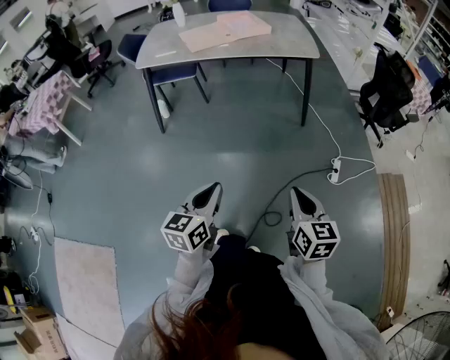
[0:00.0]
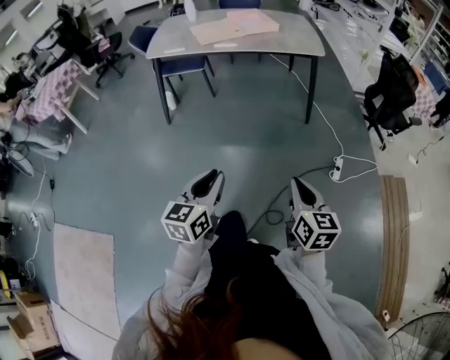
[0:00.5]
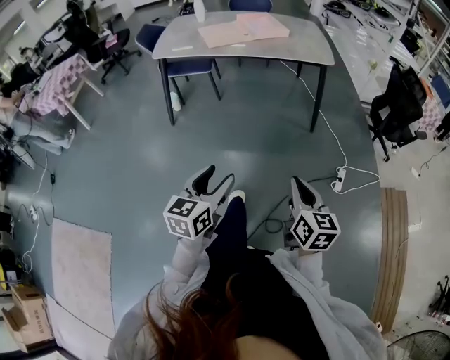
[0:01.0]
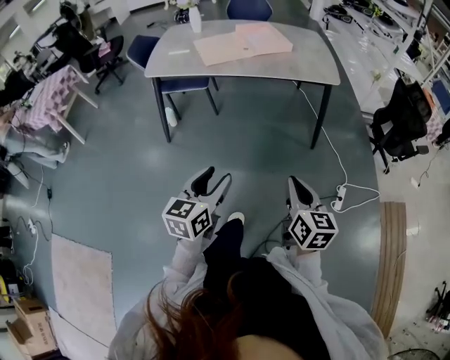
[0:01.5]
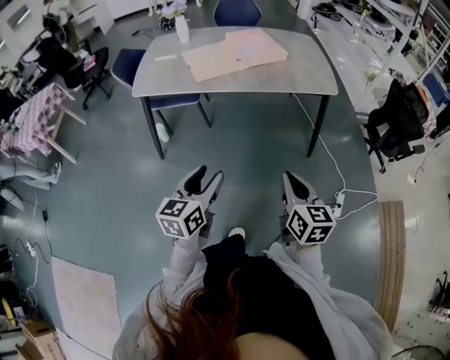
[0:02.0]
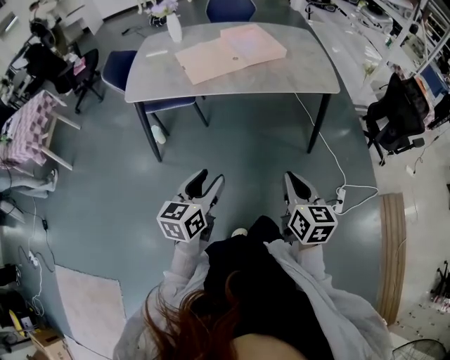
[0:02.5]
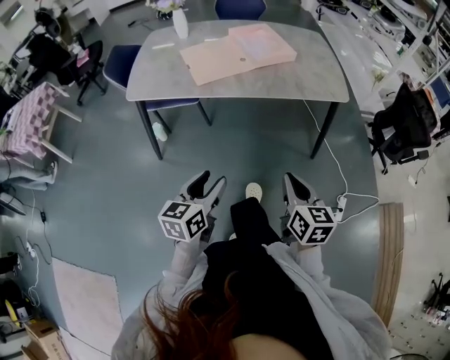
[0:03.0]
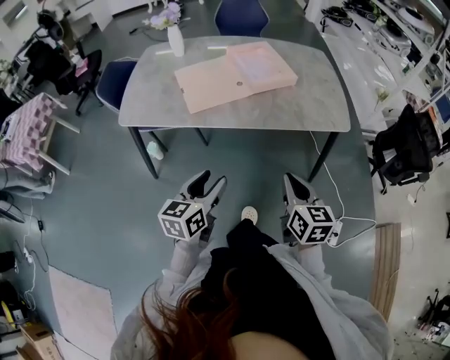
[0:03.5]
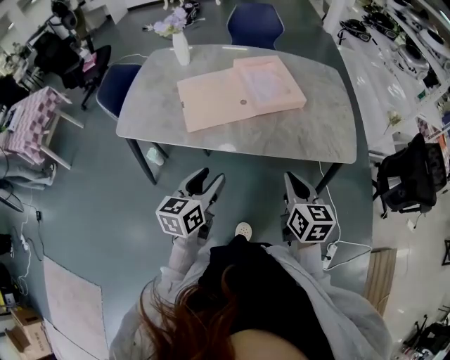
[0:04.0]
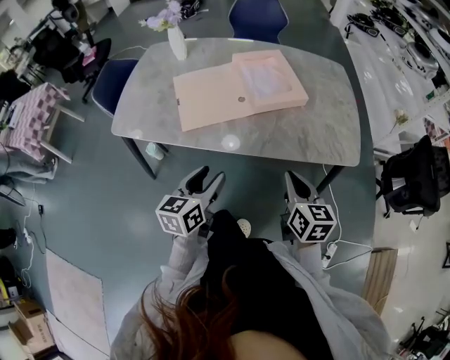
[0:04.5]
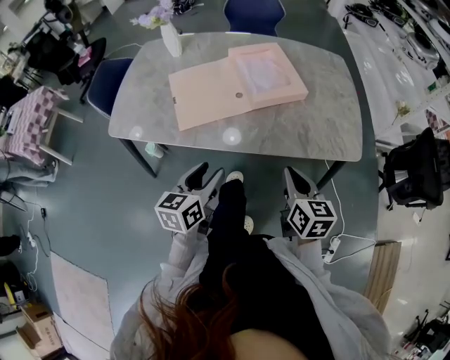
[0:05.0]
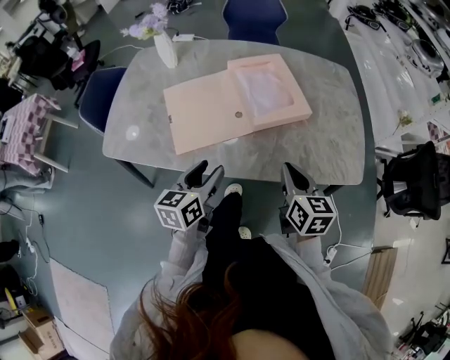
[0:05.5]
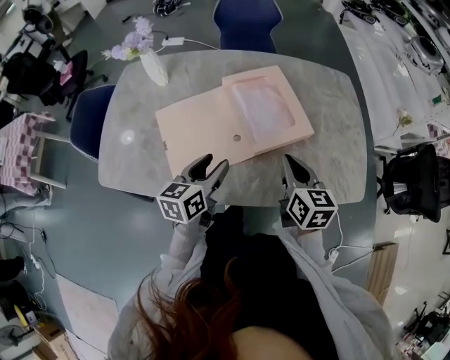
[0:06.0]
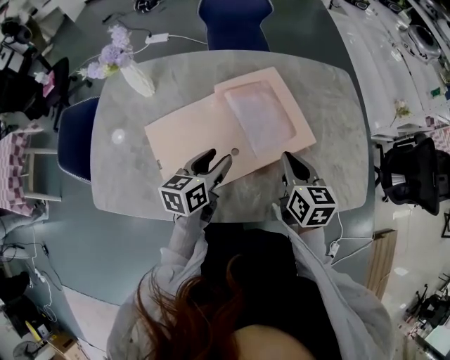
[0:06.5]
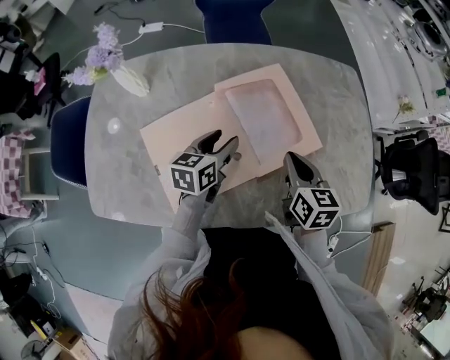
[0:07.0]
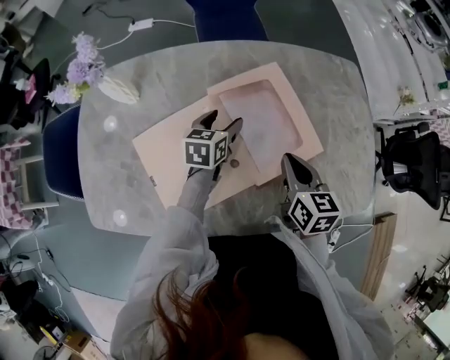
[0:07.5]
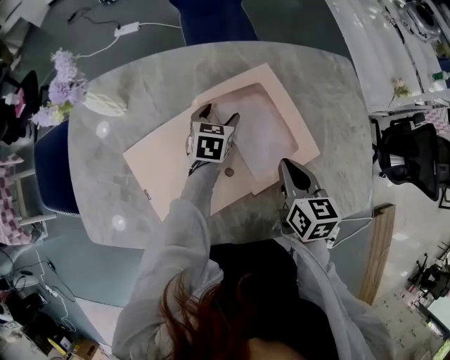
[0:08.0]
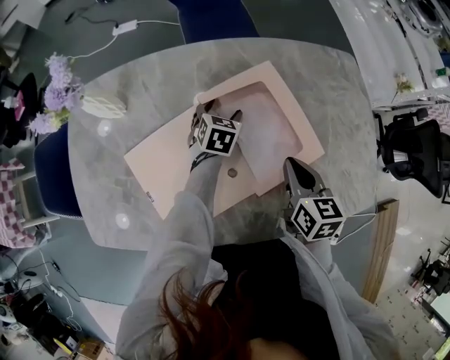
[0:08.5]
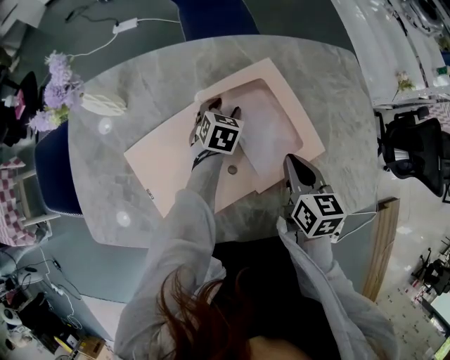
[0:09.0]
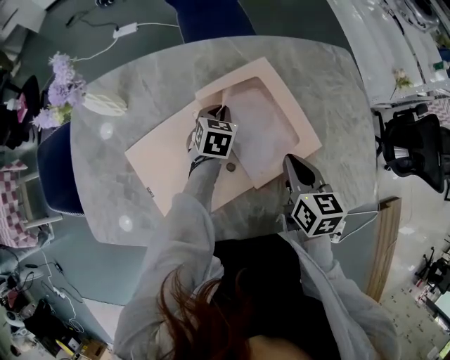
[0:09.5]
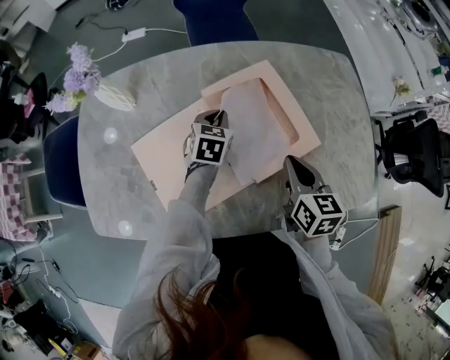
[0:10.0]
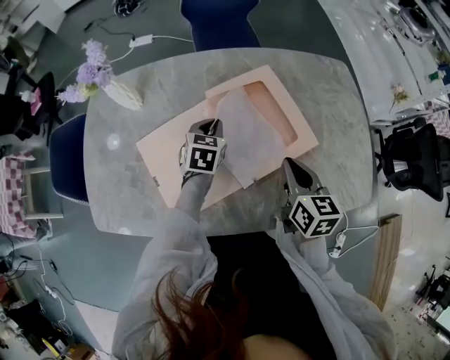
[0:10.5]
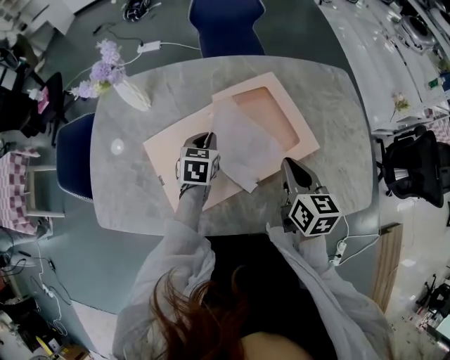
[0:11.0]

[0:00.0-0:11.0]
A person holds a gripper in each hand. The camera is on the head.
0:00.0 to 0:02.0: Both grippers travel together forward, roughly 30 cm. The left gripper opens up.
0:02.0 to 0:03.5: Both grippers move forward, approximately 25 cm.
0:03.5 to 0:05.5: Both grippers travel together forward, some 30 cm.
0:05.5 to 0:07.5: The right gripper heads forward, covering roughly 25 cm. Meanwhile the left gripper goes some 40 cm forward, and swivels about 20 degrees.
0:07.5 to 0:09.0: The left gripper is displaced downward and forward by some 10 cm, and changes its angle by approximately 20 degrees.
0:09.0 to 0:11.0: The left gripper moves backward, upward and to the left, about 15 cm, and closes its fingers, while the right gripper goes roughly 10 cm backward and upward.

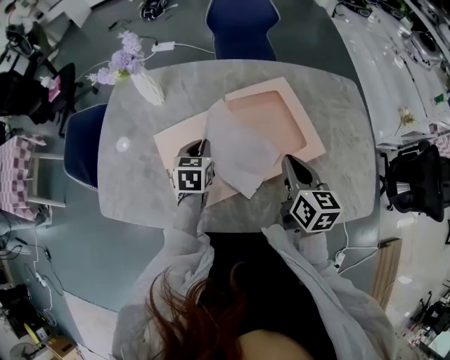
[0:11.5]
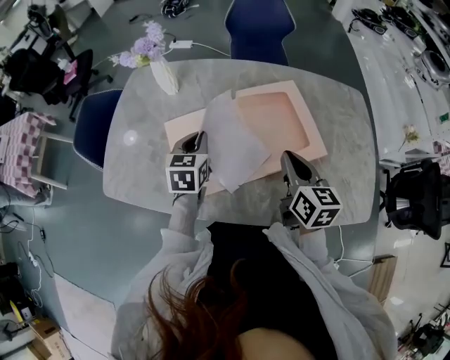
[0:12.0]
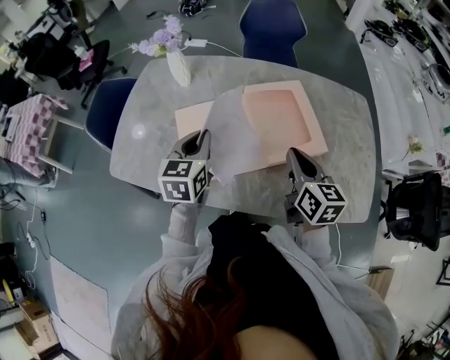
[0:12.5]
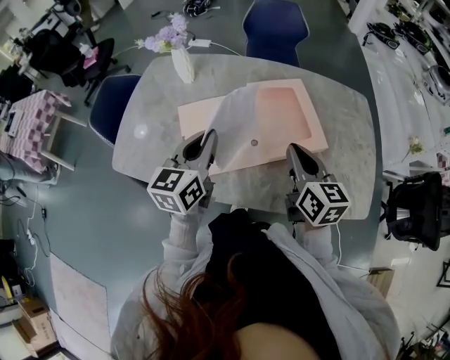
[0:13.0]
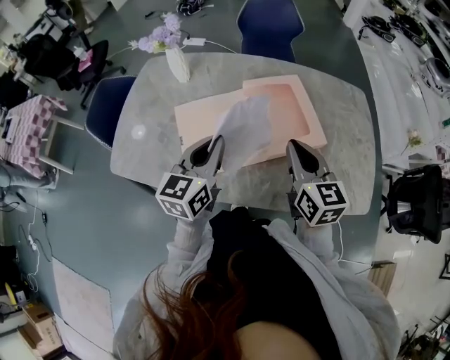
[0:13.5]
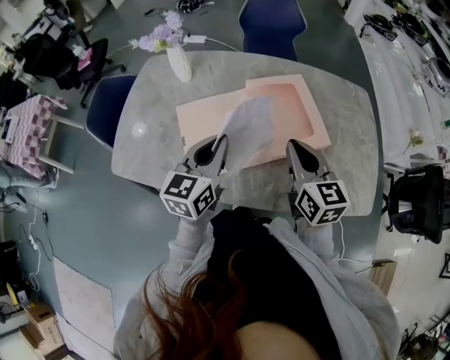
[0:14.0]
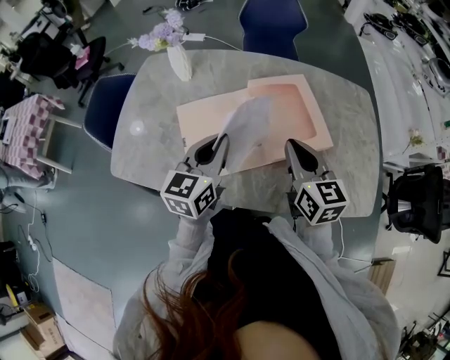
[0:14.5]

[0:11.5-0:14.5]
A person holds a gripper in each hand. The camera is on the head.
0:11.5 to 0:13.0: The right gripper shifts approximately 10 cm upward and backward. Meanwhile the left gripper heads upward and backward, covering some 25 cm, and tilts its fingers about 30 degrees upward.
0:13.0 to 0:14.5: The grippers make only small movements.

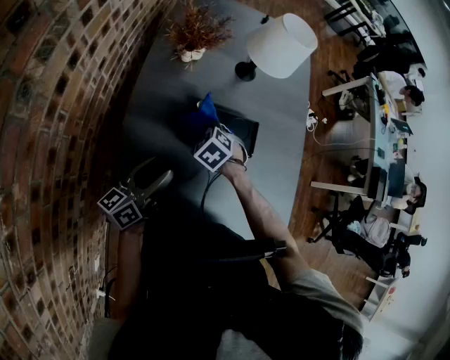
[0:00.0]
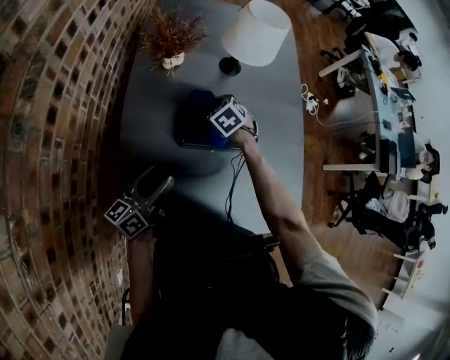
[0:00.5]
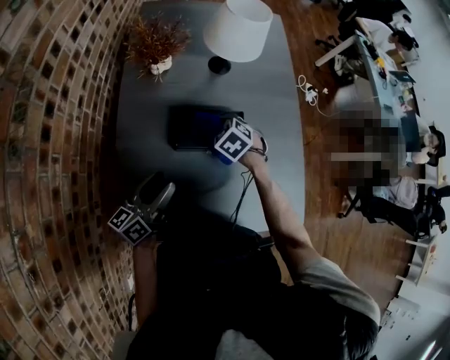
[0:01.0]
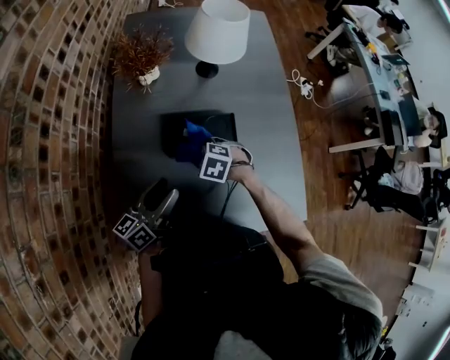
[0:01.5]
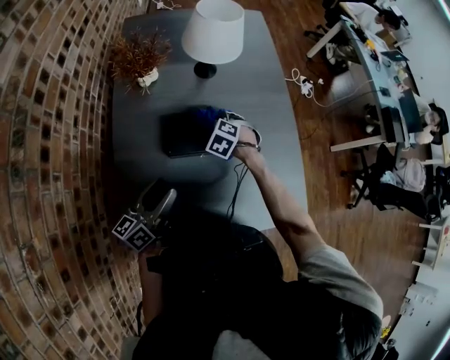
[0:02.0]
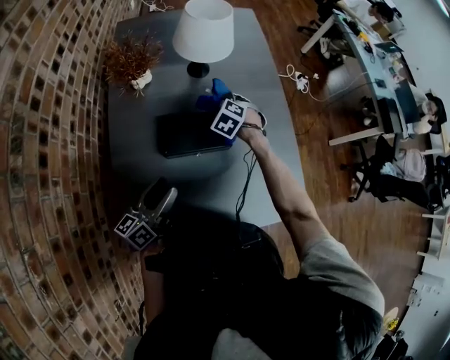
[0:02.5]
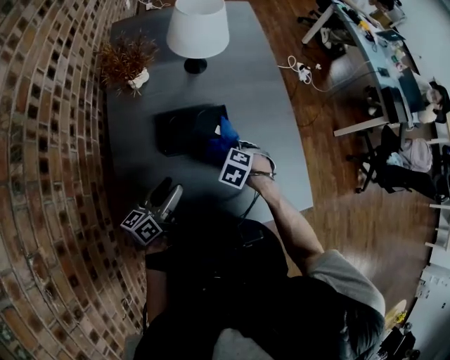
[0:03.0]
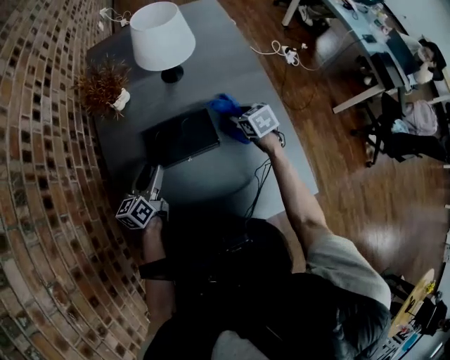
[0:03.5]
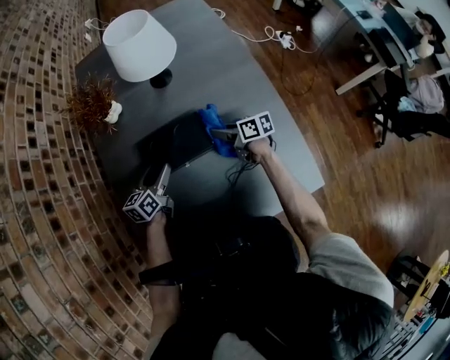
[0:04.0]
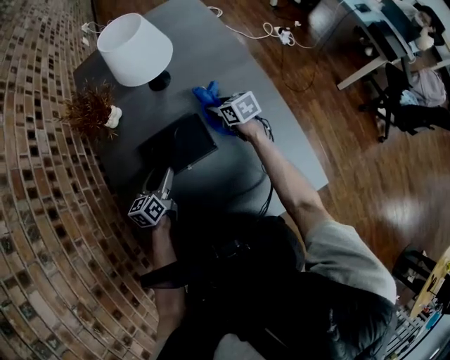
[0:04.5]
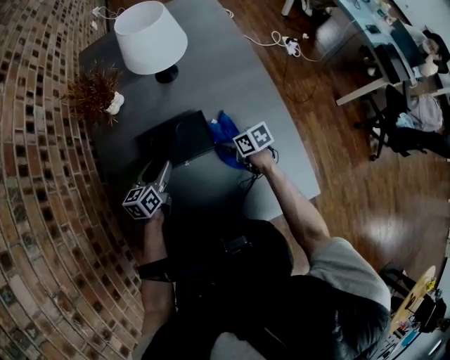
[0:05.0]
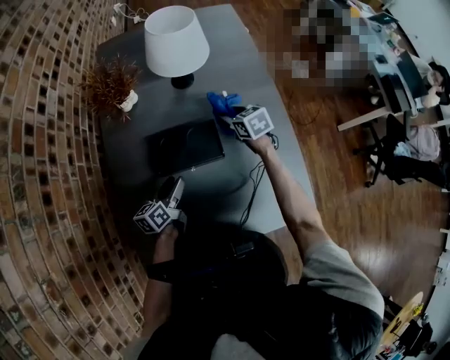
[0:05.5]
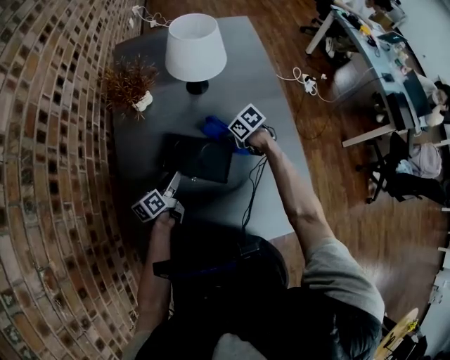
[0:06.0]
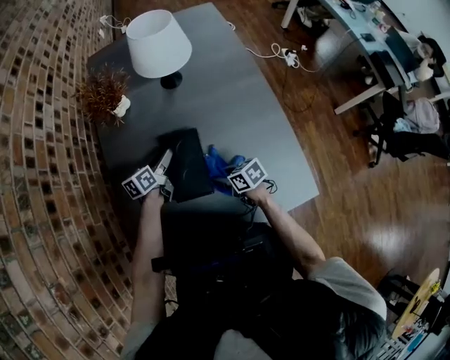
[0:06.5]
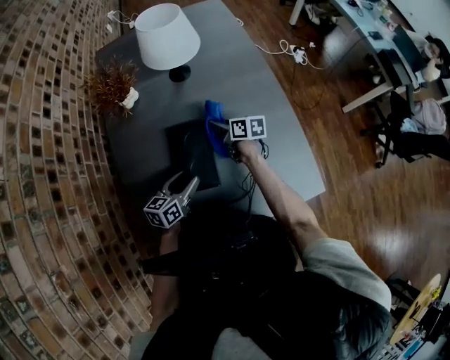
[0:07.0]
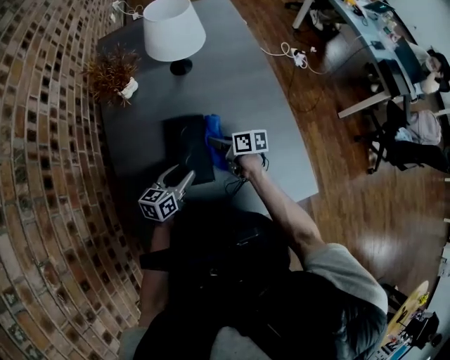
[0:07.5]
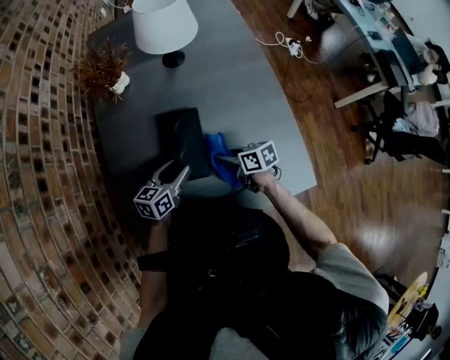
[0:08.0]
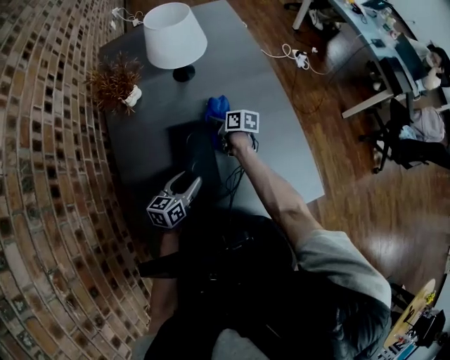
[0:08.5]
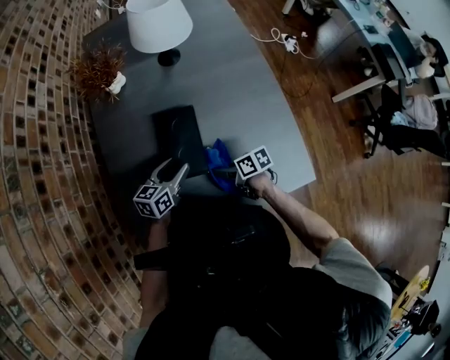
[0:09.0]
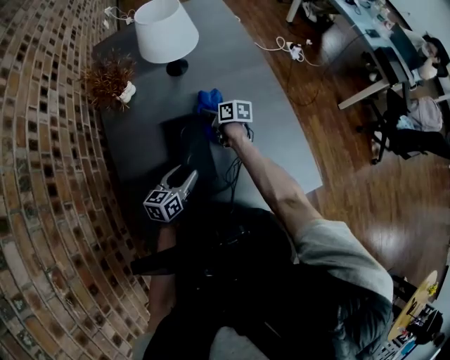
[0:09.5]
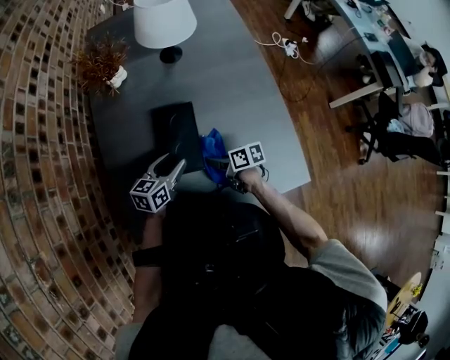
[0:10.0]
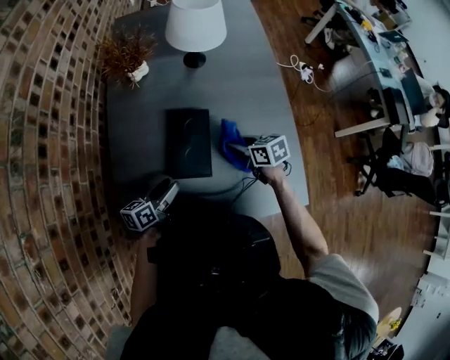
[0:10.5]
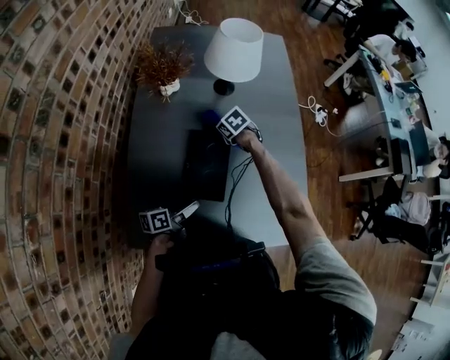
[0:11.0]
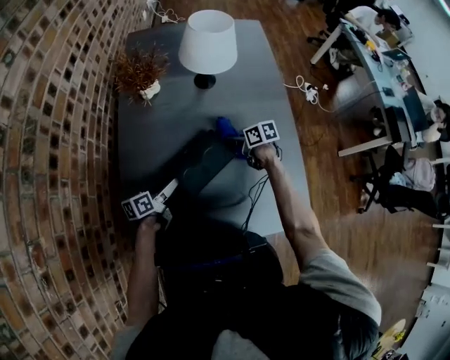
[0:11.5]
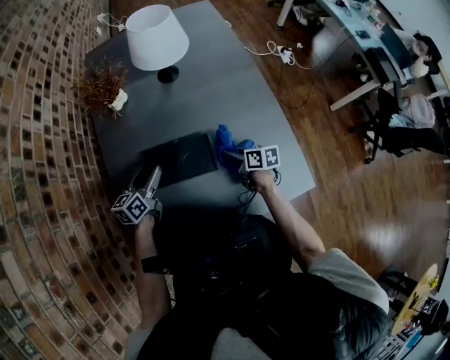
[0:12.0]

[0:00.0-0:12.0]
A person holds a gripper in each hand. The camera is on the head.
0:00.0 to 0:02.0: The left gripper shifts some 5 cm to the right, while the right gripper swings forward and backward, some 15 cm each way, with 2 reversals.
0:02.0 to 0:04.0: The right gripper rotates around the line of its fingers by some 80 degrees, clockwise from behind; the left gripper changes place by some 20 cm, and swivels roughly 30 degrees.
0:04.0 to 0:06.0: The right gripper swings forward and backward, roughly 15 cm each way, with 2 reversals, and tips its fingers downward by some 30 degrees; the left gripper turns by some 20 degrees.
0:06.0 to 0:08.0: The right gripper ends up some 20 cm from where it was, and swivels approximately 30 degrees; the left gripper changes place by approximately 10 cm, and changes its angle by roughly 30 degrees.
0:08.0 to 0:10.0: The right gripper goes forward and backward, roughly 25 cm each way, reversing 3 times.
0:10.0 to 0:12.0: The left gripper goes approximately 10 cm to the left and forward; the right gripper goes some 10 cm to the right, and goes forward and returns, roughly 25 cm each way.
